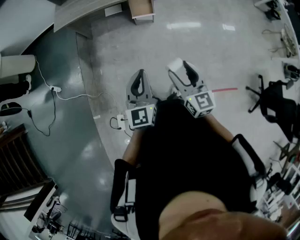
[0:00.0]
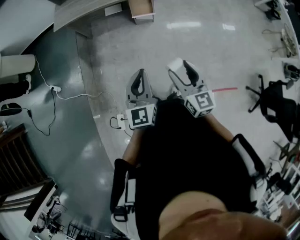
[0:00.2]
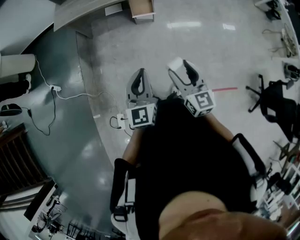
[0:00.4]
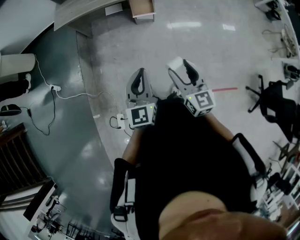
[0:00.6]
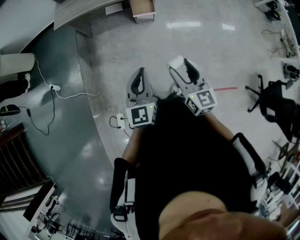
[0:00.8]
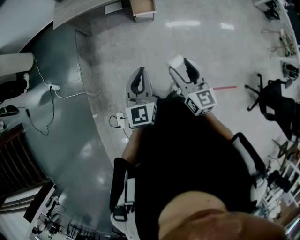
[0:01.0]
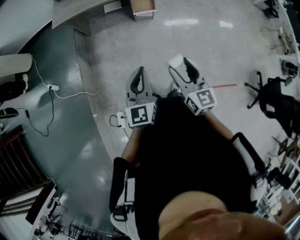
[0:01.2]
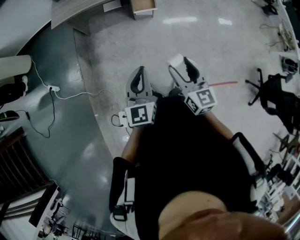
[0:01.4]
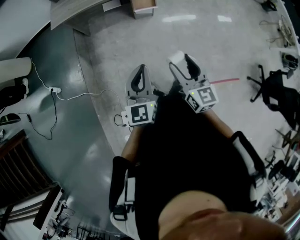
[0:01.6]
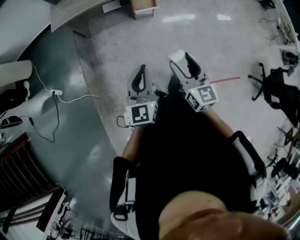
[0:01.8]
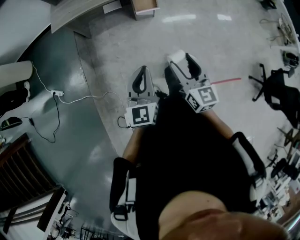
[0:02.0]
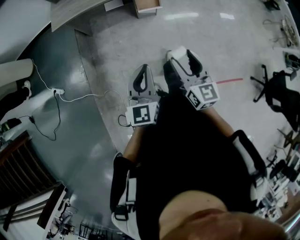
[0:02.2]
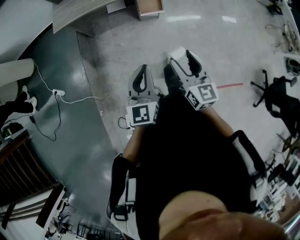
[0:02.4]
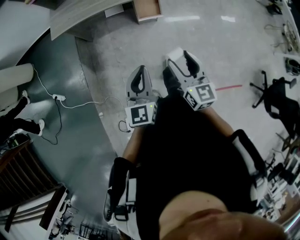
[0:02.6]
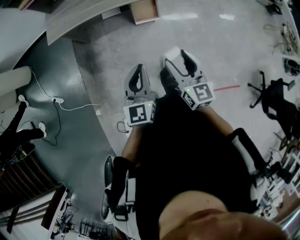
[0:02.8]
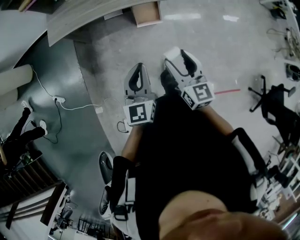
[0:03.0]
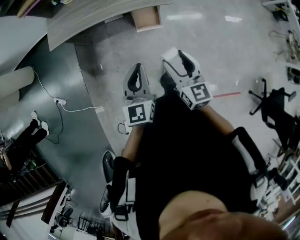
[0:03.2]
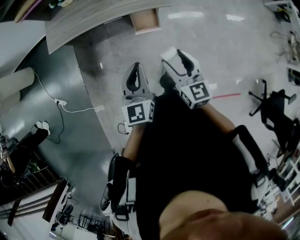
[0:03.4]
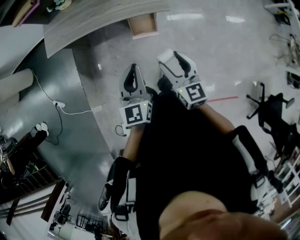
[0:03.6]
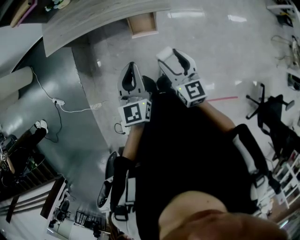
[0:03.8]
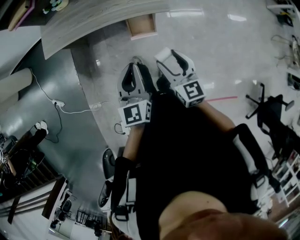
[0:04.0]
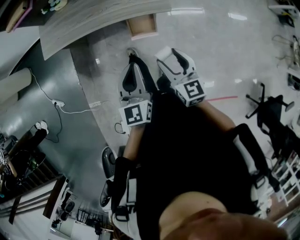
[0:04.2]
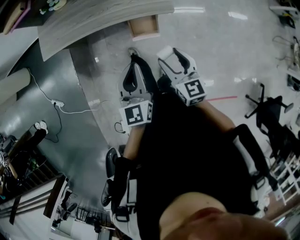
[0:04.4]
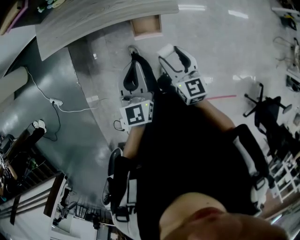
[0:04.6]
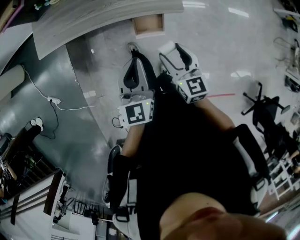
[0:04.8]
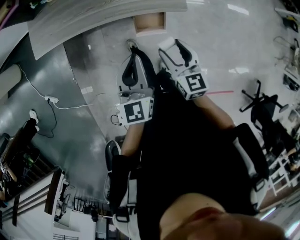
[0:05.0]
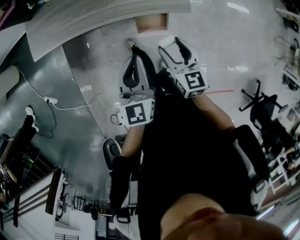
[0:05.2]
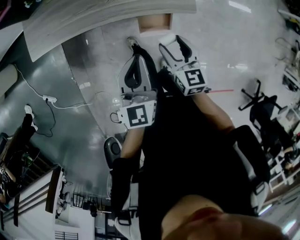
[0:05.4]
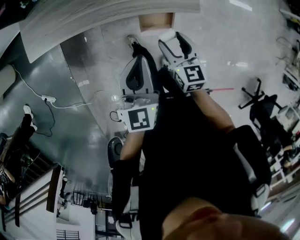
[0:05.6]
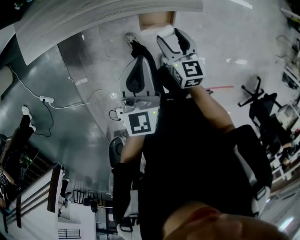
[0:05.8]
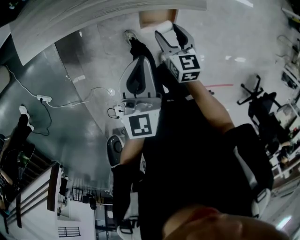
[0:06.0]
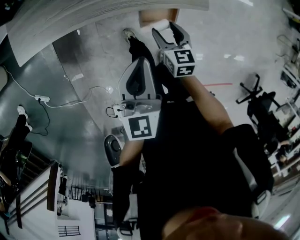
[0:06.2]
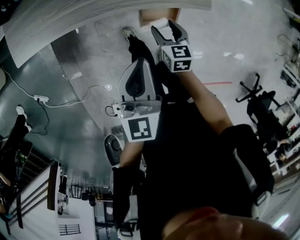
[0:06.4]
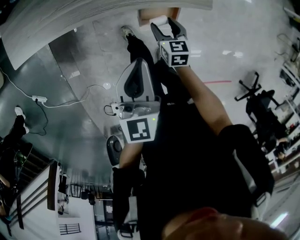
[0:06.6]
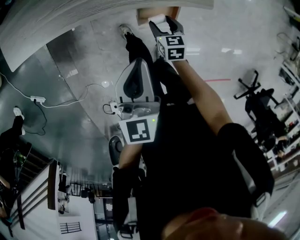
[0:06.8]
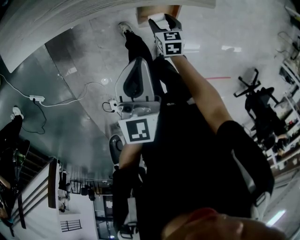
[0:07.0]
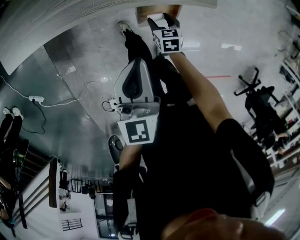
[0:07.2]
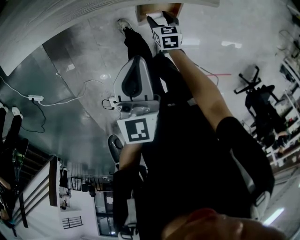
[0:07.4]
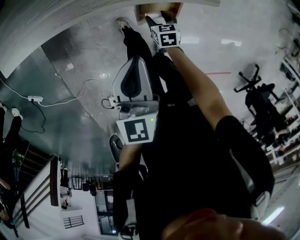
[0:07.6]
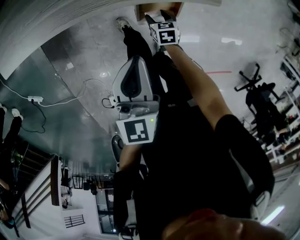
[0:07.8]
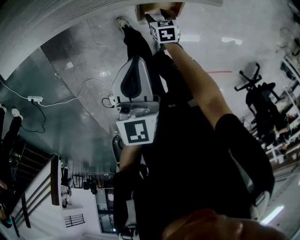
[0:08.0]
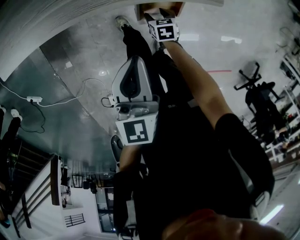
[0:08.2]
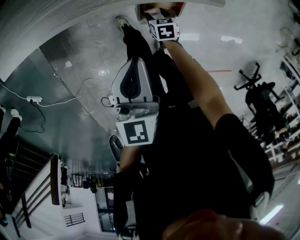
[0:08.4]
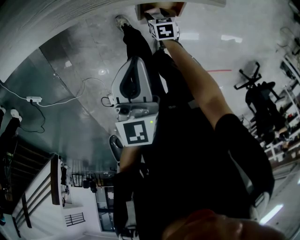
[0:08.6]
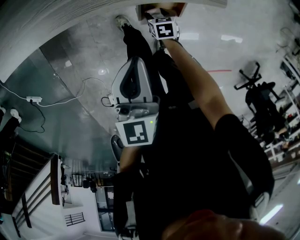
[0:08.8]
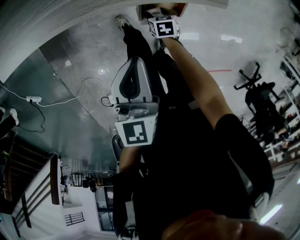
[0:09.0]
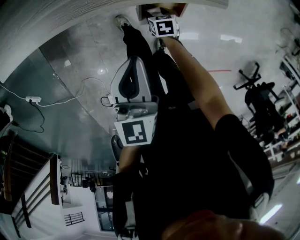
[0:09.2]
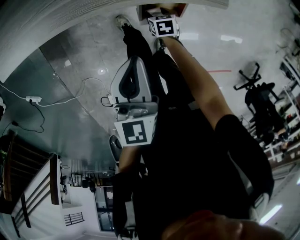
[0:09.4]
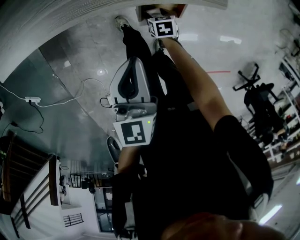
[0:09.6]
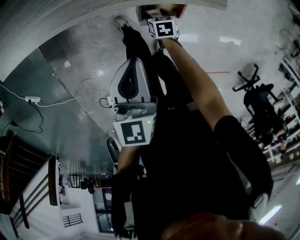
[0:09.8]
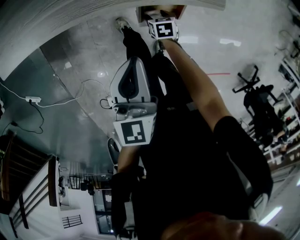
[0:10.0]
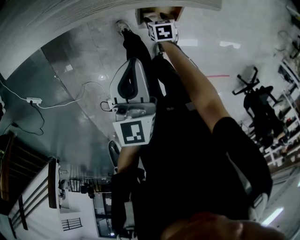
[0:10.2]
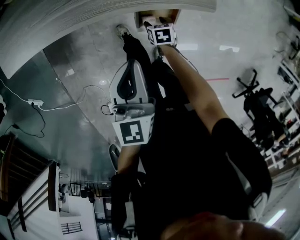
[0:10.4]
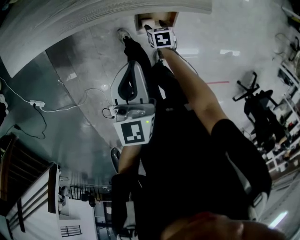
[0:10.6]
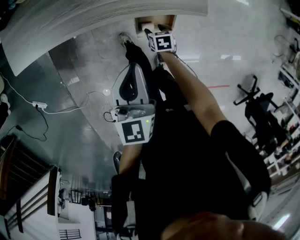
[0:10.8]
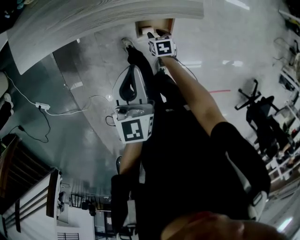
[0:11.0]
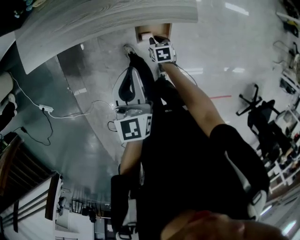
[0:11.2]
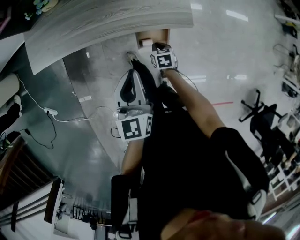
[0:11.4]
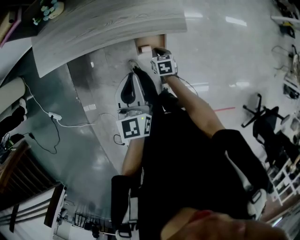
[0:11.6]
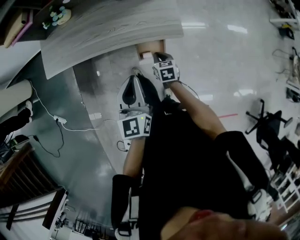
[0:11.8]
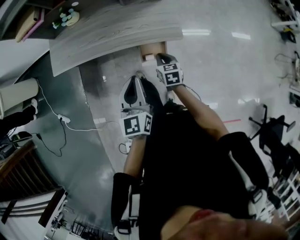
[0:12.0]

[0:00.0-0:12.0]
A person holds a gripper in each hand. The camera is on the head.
0.0 to 1.6 s: Both grippers move to the left, roughly 5 cm.
1.6 to 3.0 s: Both grippers move forward, some 25 cm.
3.0 to 4.4 s: The two grippers go roughly 20 cm forward.
4.4 to 6.0 s: The left gripper heads forward, downward and to the left, covering approximately 20 cm. Meanwhile the right gripper moves downward and forward, some 25 cm.
6.0 to 7.6 s: The right gripper heads downward, covering some 25 cm, and changes its angle by approximately 30 degrees. The left gripper is displaced downward by about 10 cm.
7.6 to 10.4 s: The grippers move only a little.
10.4 to 12.0 s: The left gripper heads upward and backward, covering about 20 cm. The right gripper shifts roughly 30 cm upward, rotates about 30 degrees, and closes up.

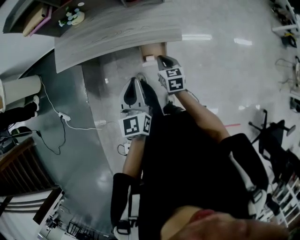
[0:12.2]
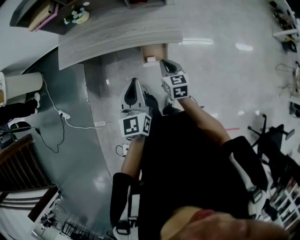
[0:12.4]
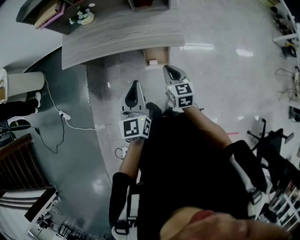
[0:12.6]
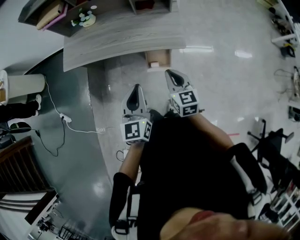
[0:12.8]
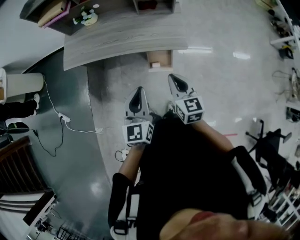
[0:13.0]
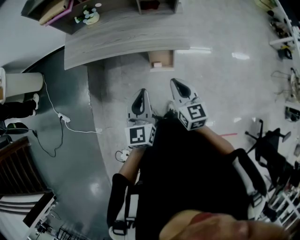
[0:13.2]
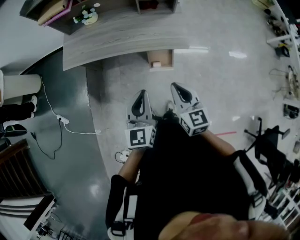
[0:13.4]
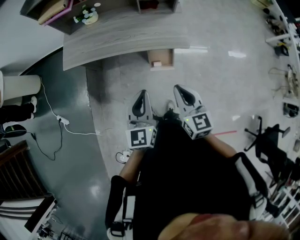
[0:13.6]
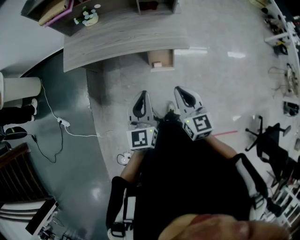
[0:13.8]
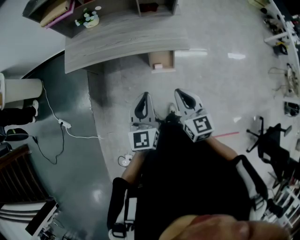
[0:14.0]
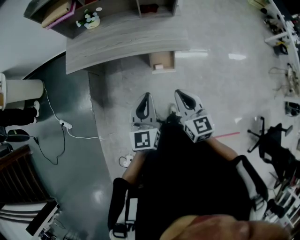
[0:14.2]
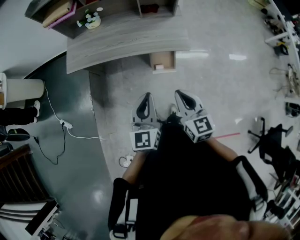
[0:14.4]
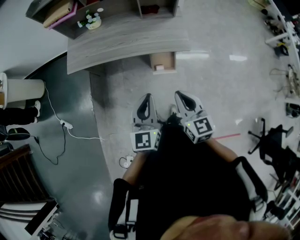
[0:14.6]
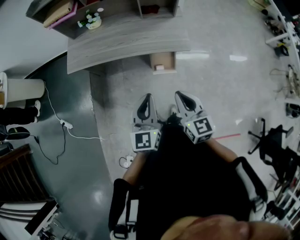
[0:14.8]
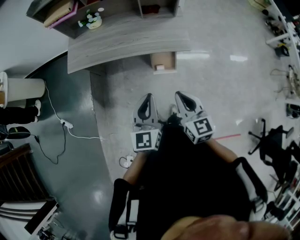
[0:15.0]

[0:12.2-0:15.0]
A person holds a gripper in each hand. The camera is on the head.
12.2 to 13.6 s: The left gripper moves to the left and backward, some 10 cm. The right gripper goes about 25 cm upward and backward.
13.6 to 15.0 s: The grippers move only a little.

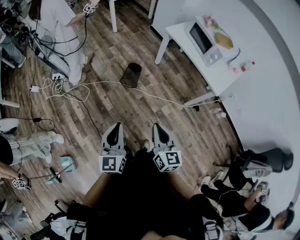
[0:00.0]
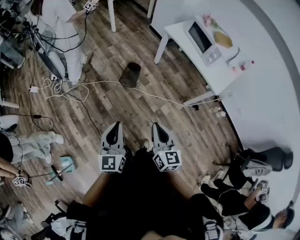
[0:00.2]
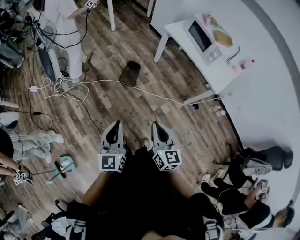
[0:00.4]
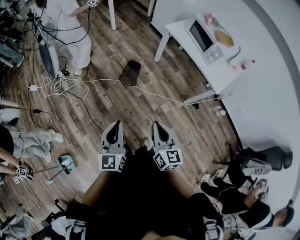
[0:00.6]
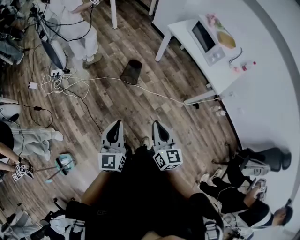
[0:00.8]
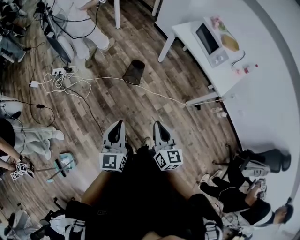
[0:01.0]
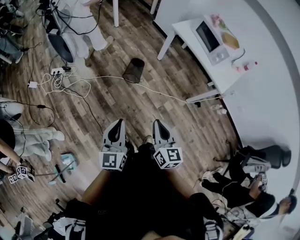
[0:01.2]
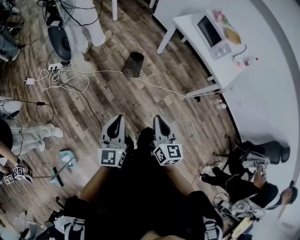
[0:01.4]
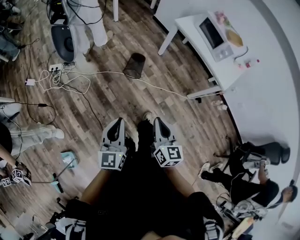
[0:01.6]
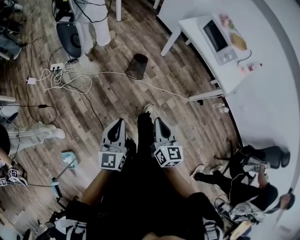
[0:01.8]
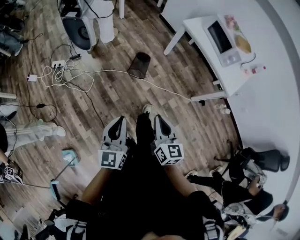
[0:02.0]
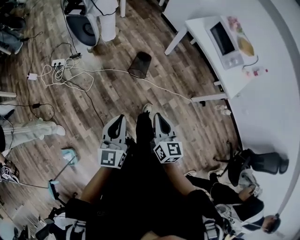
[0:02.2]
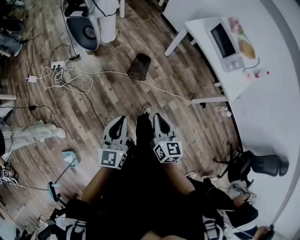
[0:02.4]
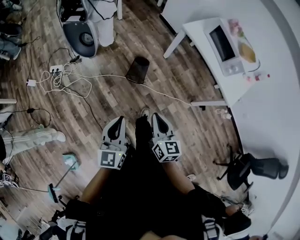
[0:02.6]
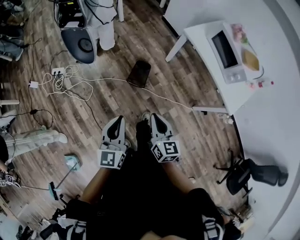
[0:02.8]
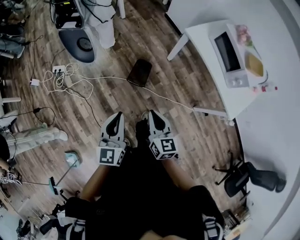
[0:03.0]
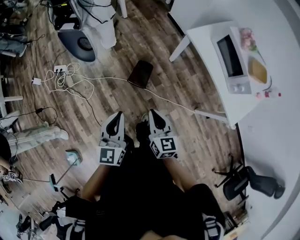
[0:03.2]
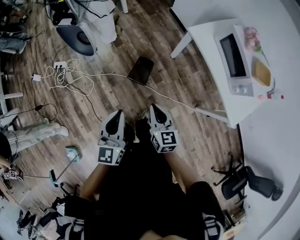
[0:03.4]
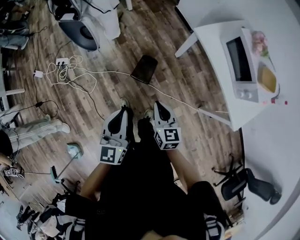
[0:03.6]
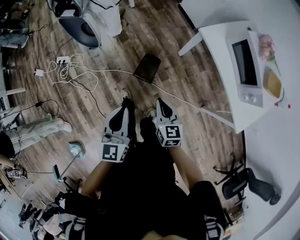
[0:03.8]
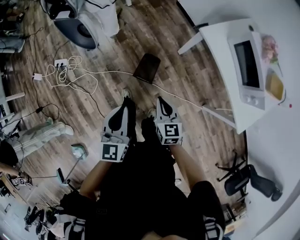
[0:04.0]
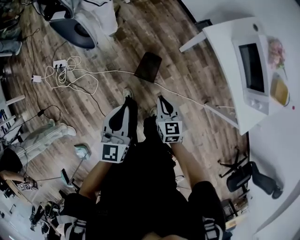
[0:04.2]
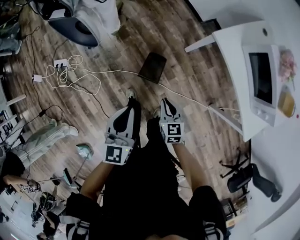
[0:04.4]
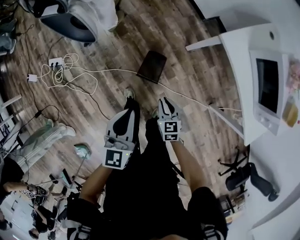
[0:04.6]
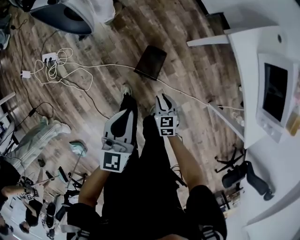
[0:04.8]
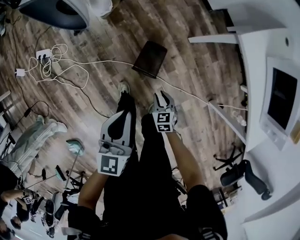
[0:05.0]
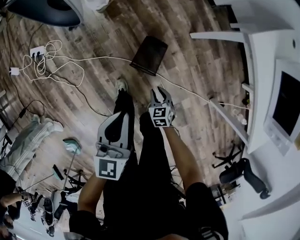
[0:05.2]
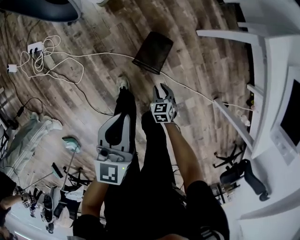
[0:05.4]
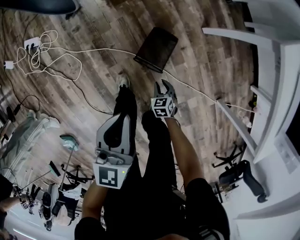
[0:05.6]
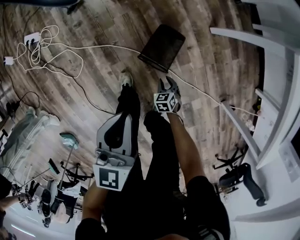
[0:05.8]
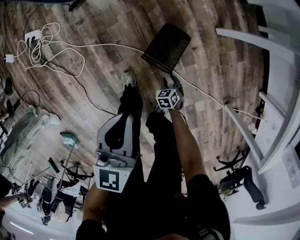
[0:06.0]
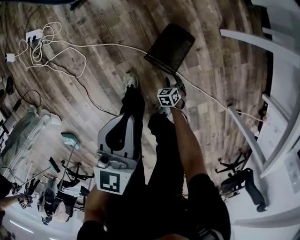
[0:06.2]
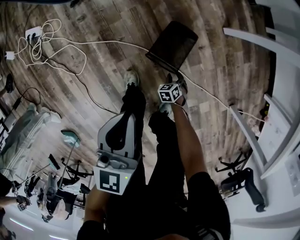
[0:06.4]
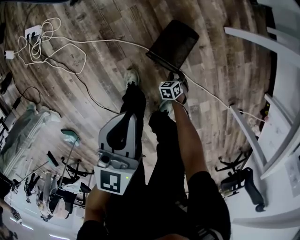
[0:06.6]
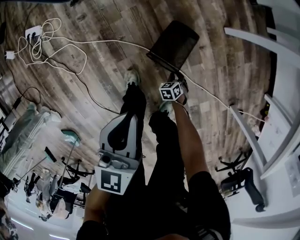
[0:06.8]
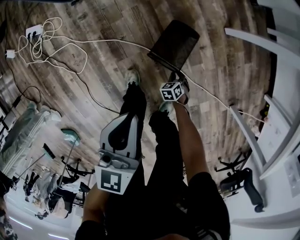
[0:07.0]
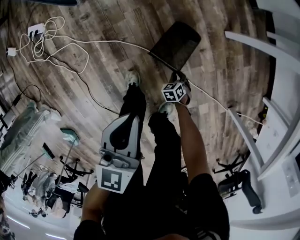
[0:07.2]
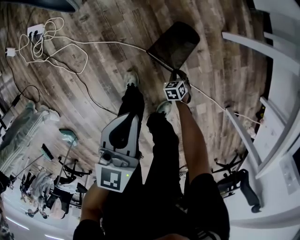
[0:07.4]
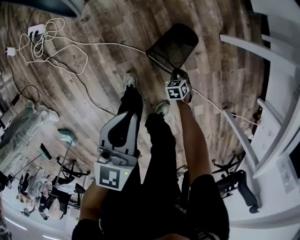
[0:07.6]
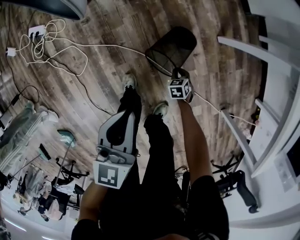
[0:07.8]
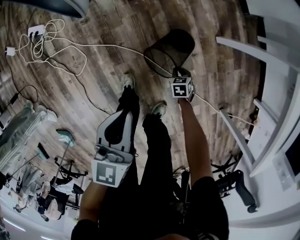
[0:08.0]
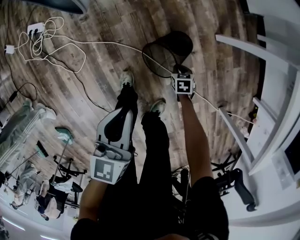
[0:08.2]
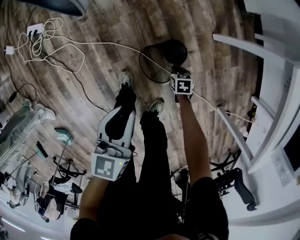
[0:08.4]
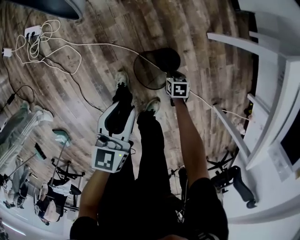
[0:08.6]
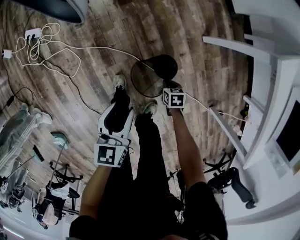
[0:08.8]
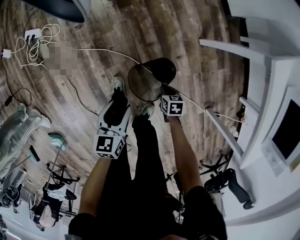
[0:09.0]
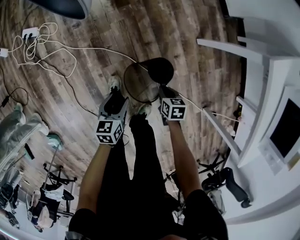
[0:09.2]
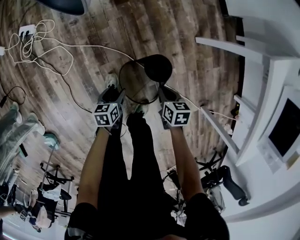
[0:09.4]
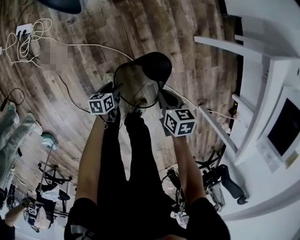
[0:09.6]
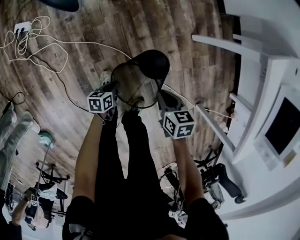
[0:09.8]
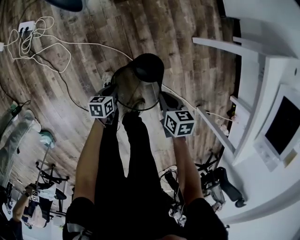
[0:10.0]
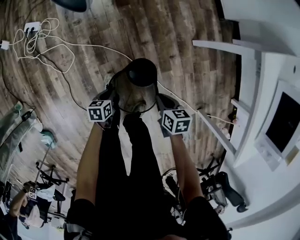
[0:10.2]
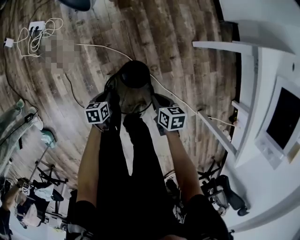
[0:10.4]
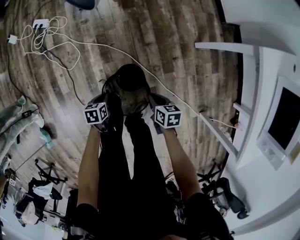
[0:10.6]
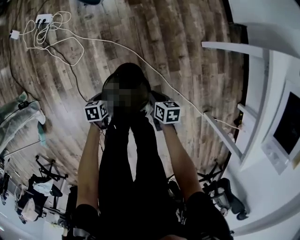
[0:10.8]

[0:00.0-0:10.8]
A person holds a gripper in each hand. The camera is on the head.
0.0 to 1.6 s: The grippers both shift to the left by about 10 cm.
1.6 to 3.0 s: Both grippers move forward, approximately 25 cm.
3.0 to 4.6 s: The left gripper heads forward and downward, covering approximately 30 cm. Meanwhile the right gripper is displaced downward and forward by about 35 cm, and rotates some 30 degrees.
4.6 to 6.2 s: The right gripper is displaced downward by roughly 50 cm, tilts its fingers about 30 degrees downward, and opens up. Meanwhile the left gripper moves downward, about 25 cm.
6.2 to 7.8 s: The right gripper moves roughly 10 cm, and closes its fingers.
7.8 to 9.2 s: The left gripper goes approximately 15 cm downward, changes its angle by some 30 degrees, and opens up. The right gripper moves upward, some 15 cm, and swivels some 30 degrees.
9.2 to 10.8 s: The left gripper travels backward, to the left and downward by about 15 cm, swivels approximately 20 degrees, and closes its fingers. Meanwhile the right gripper moves backward and to the left, about 10 cm, and travels upward and back again, about 10 cm each way.
